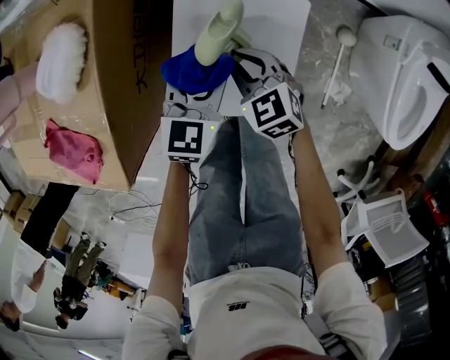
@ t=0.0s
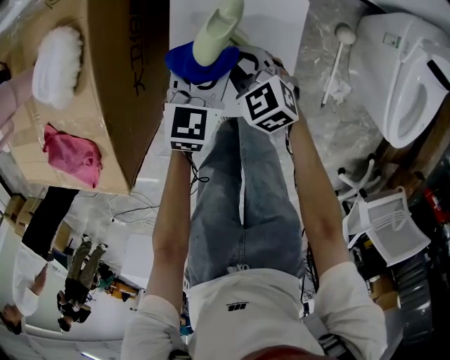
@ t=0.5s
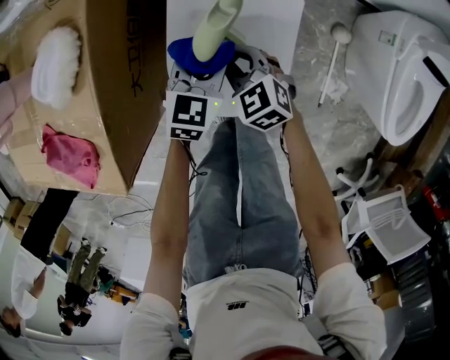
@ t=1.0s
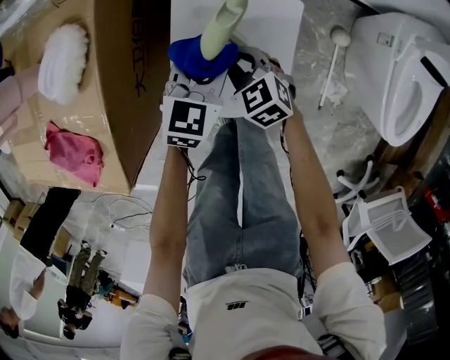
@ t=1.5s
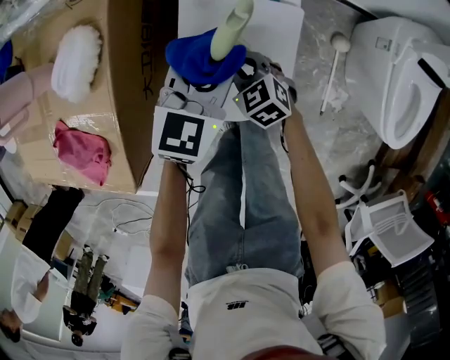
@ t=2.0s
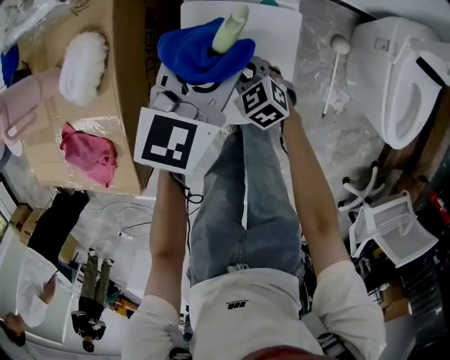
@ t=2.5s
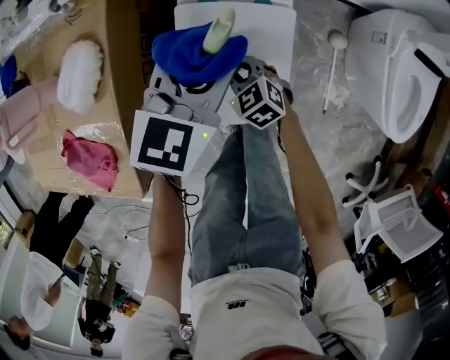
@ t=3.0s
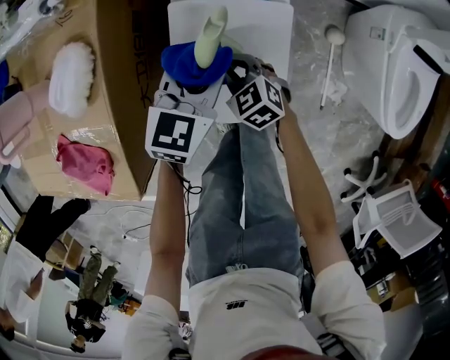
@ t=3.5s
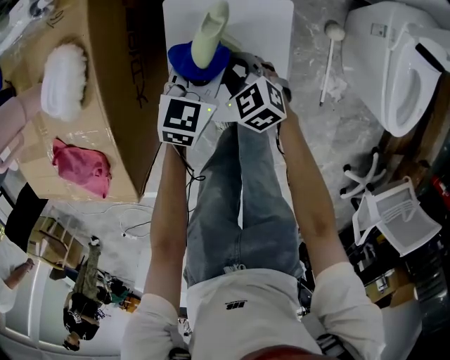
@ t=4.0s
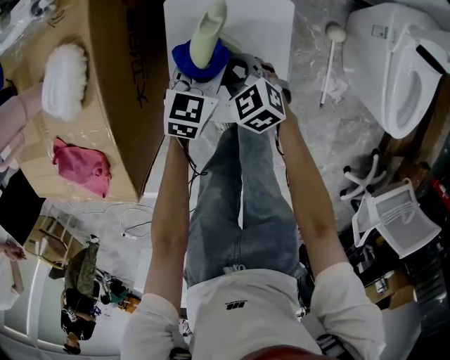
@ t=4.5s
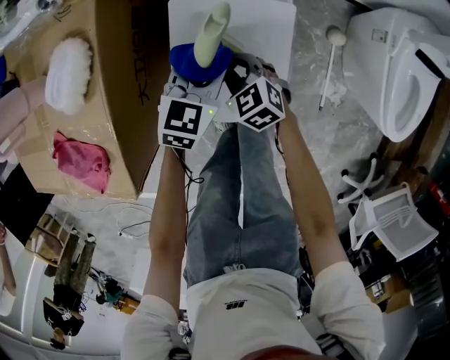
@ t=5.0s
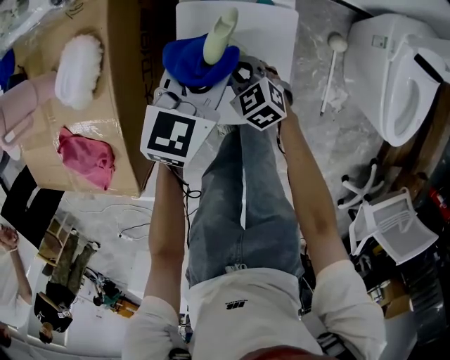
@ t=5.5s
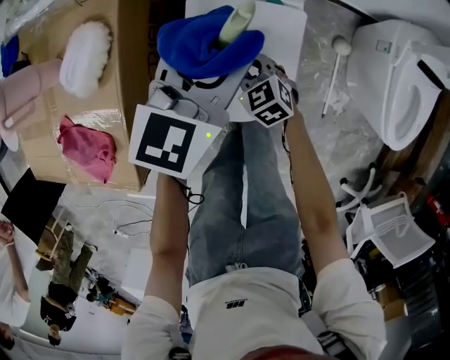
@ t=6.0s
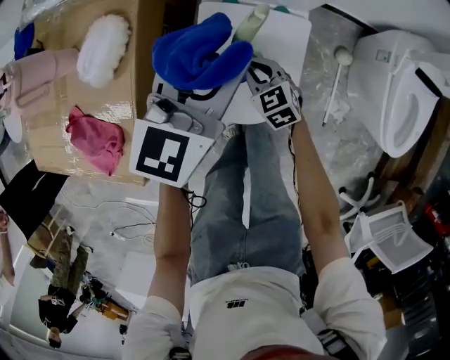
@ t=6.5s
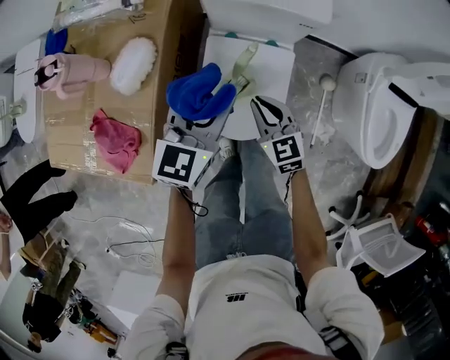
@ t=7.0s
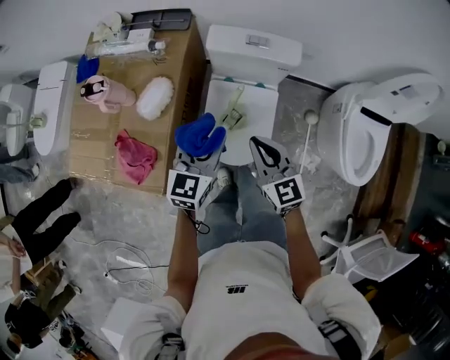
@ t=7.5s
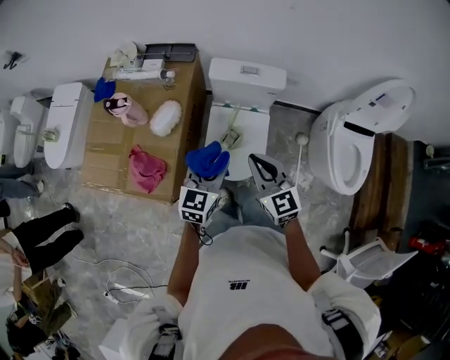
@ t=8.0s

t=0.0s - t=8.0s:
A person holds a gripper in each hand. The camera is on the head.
t=0.0s - t=2.0s: The left gripper travels upward by approximately 10 cm.
t=2.0s - t=4.0s: The left gripper goes about 10 cm downward.
t=4.0s - t=6.0s: The left gripper heads upward, covering roughly 20 cm.
t=6.0s - t=8.0s: The left gripper heads upward and backward, covering about 30 cm; the right gripper moves upward, some 50 cm, and tilts its fingers roughly 30 degrees upward.

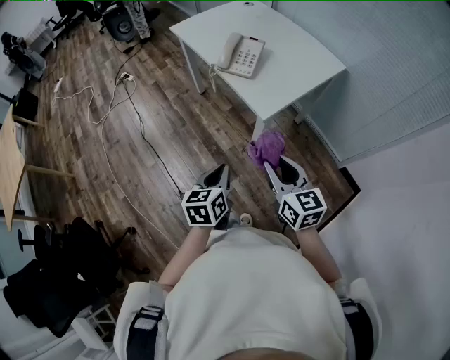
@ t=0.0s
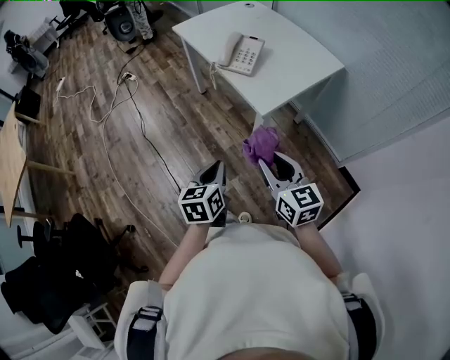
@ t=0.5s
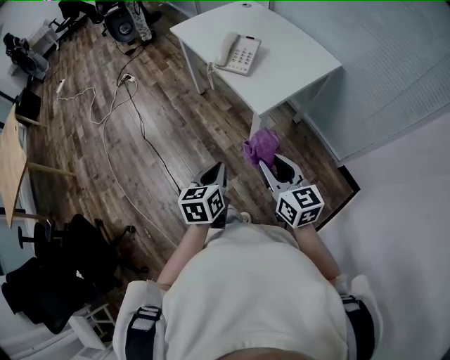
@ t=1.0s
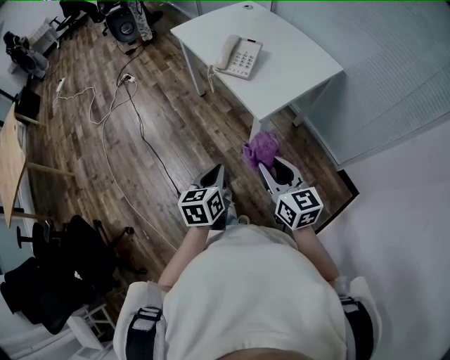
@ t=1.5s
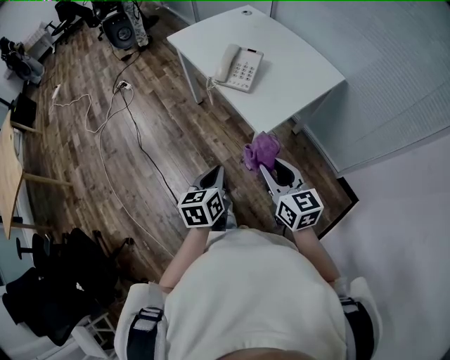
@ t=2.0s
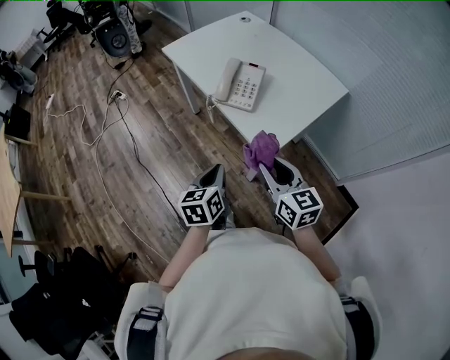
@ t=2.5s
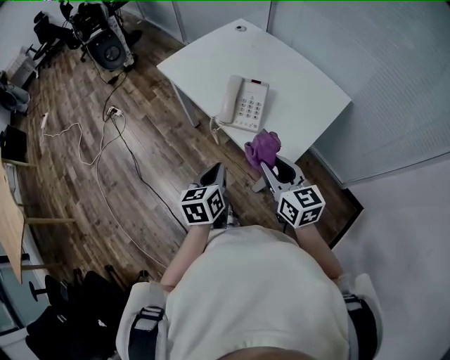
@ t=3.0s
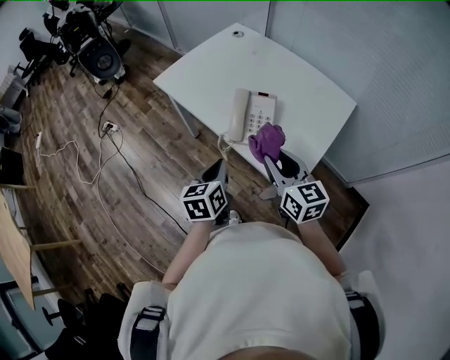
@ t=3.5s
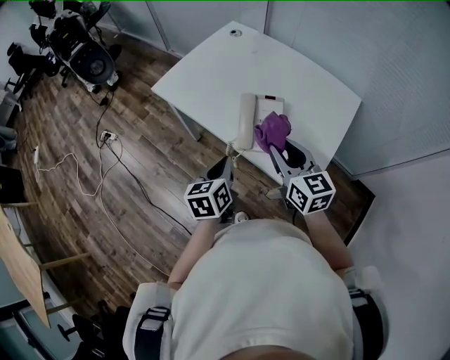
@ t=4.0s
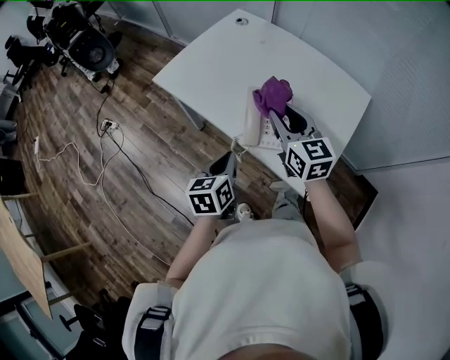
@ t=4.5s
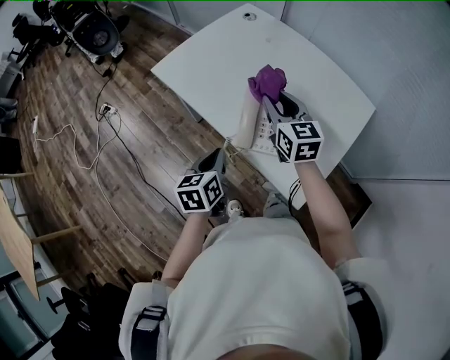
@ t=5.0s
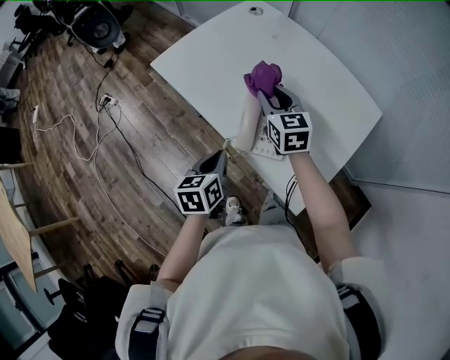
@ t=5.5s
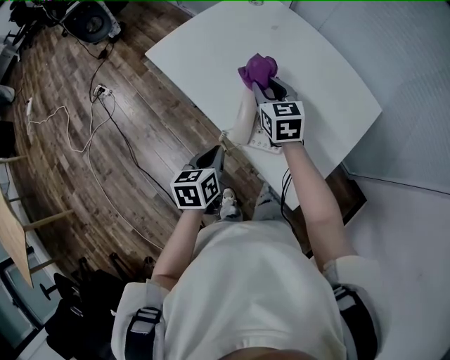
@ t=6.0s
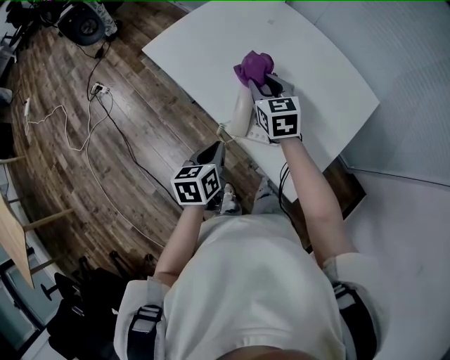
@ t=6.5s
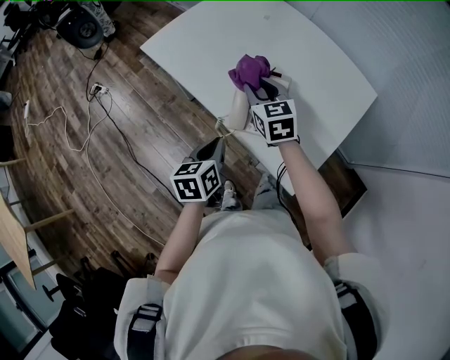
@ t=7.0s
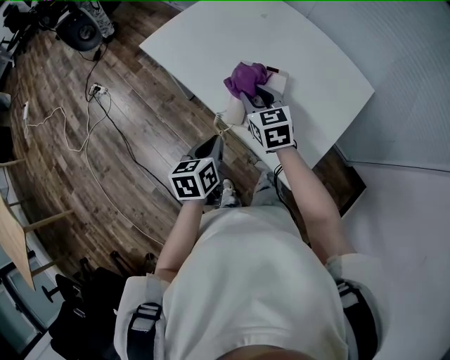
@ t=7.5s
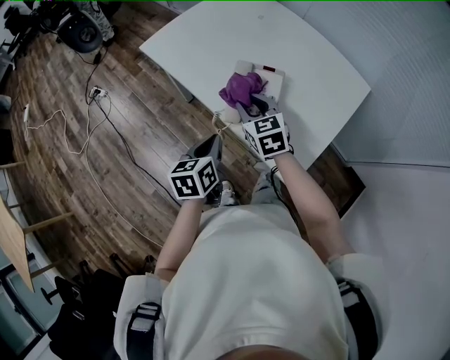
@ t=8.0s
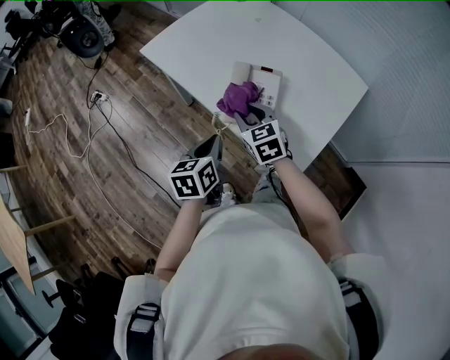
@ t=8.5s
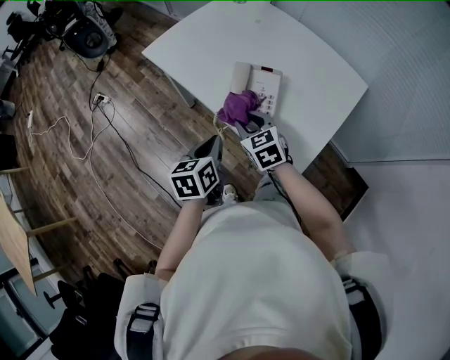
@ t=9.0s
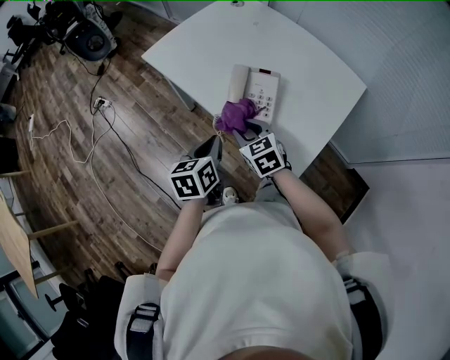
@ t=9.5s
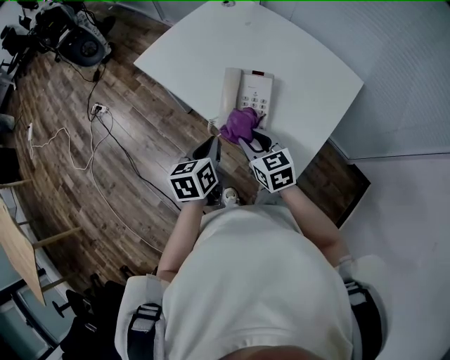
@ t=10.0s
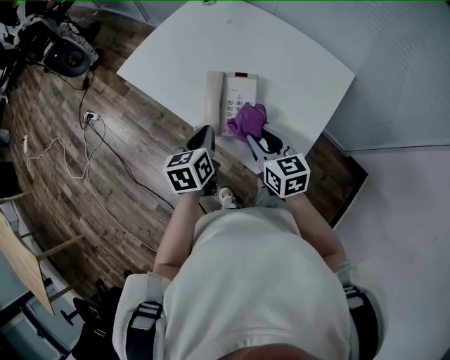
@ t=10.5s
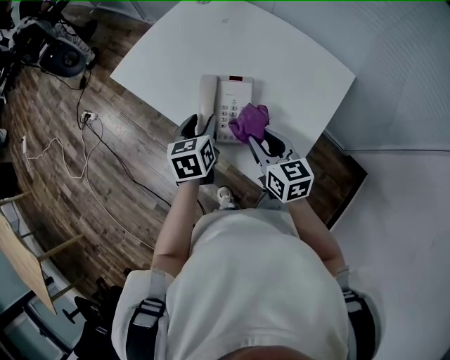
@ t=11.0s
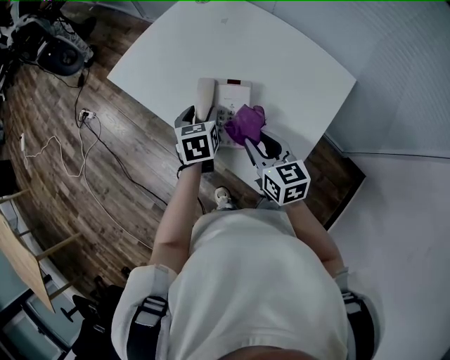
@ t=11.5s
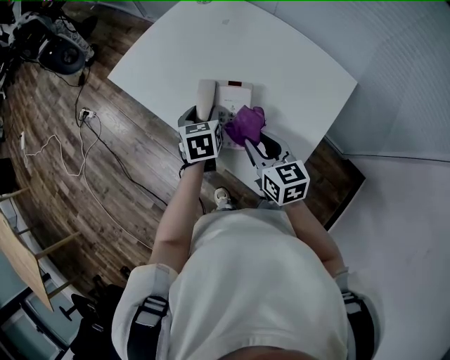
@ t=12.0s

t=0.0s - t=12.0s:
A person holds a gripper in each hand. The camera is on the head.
t=0.0s - t=2.0s: The left gripper goes some 5 cm forward.
t=2.0s - t=4.0s: Both grippers travel together forward, some 35 cm.
t=4.0s - t=6.0s: The left gripper is displaced downward by some 5 cm, while the right gripper is displaced forward by roughly 20 cm.
t=6.0s - t=8.0s: The right gripper is displaced backward by about 10 cm.
t=8.0s - t=10.0s: The right gripper goes some 10 cm backward.
t=10.0s - t=12.0s: The right gripper travels to the right by roughly 10 cm. Meanwhile the left gripper shifts approximately 15 cm forward and to the right, changes its angle by about 20 degrees, and opens its fingers.

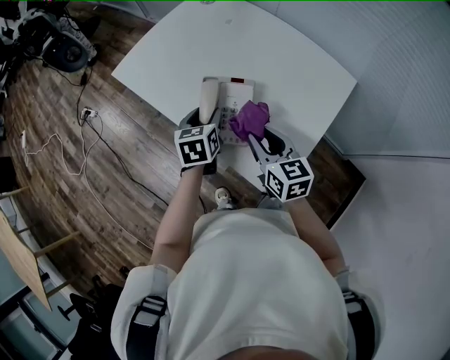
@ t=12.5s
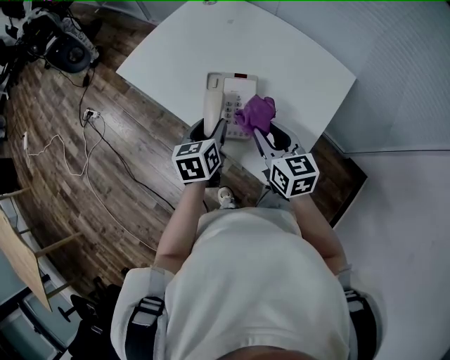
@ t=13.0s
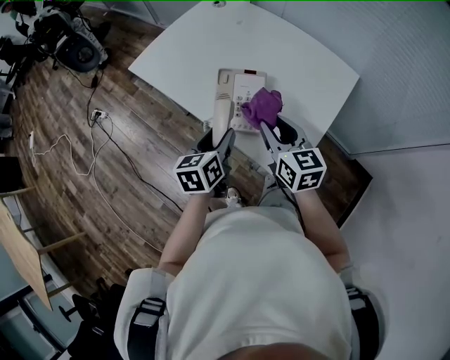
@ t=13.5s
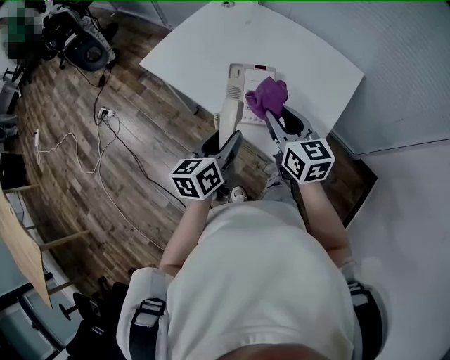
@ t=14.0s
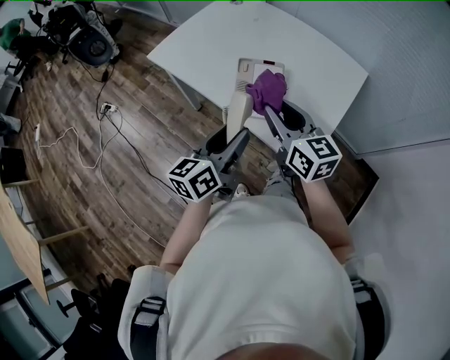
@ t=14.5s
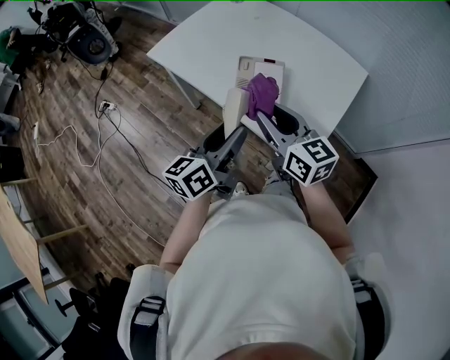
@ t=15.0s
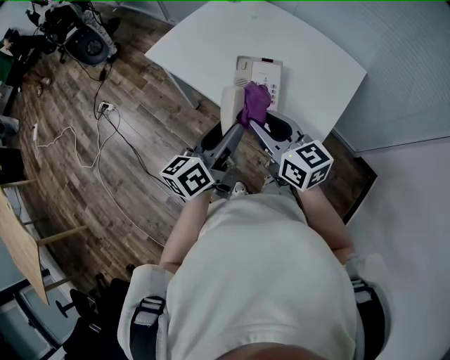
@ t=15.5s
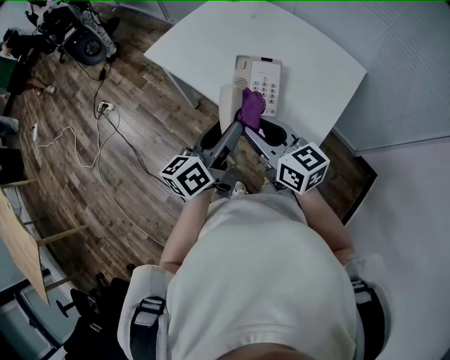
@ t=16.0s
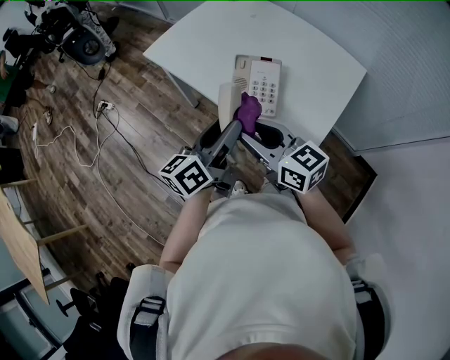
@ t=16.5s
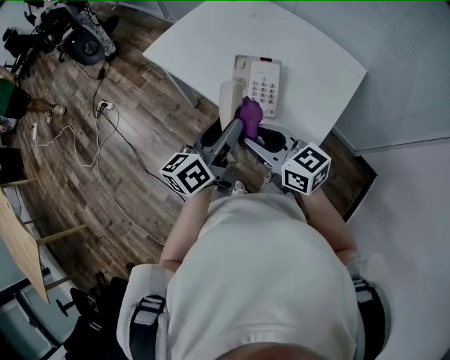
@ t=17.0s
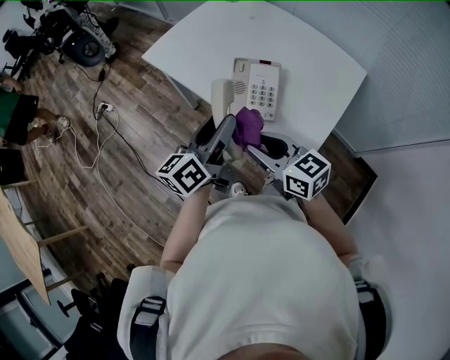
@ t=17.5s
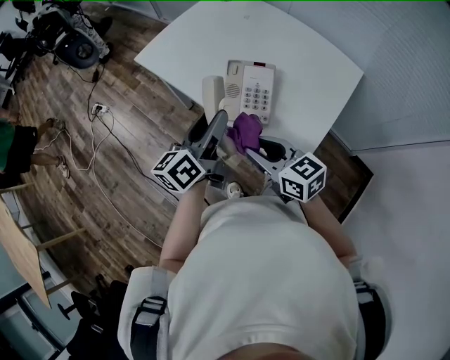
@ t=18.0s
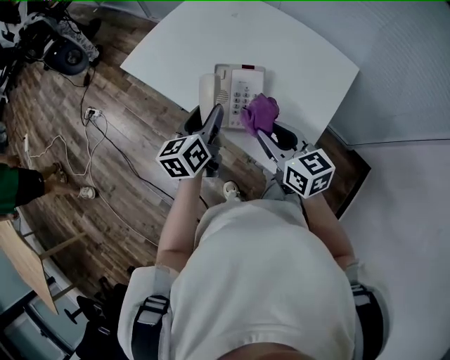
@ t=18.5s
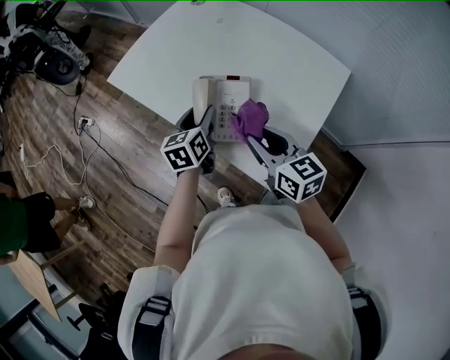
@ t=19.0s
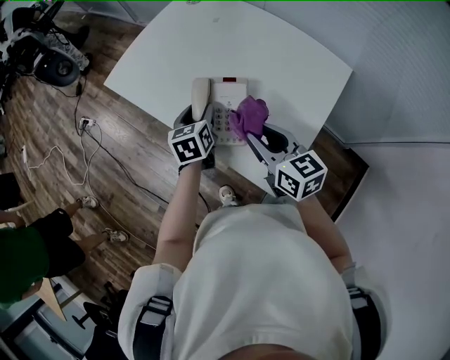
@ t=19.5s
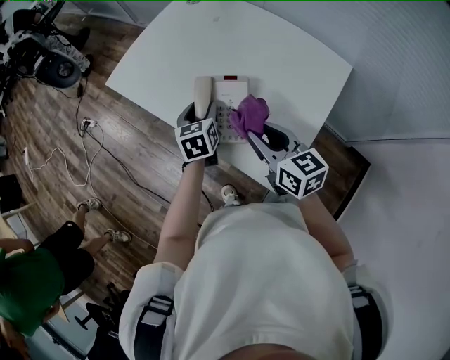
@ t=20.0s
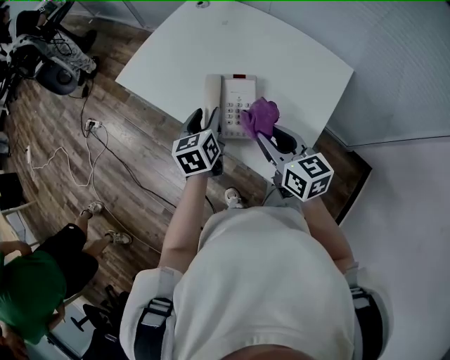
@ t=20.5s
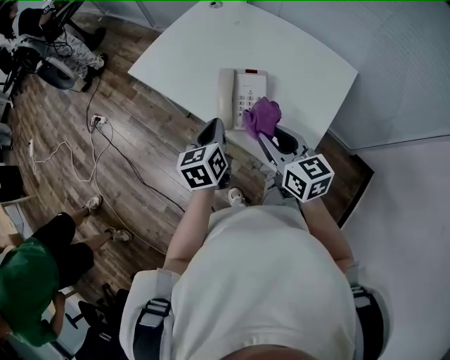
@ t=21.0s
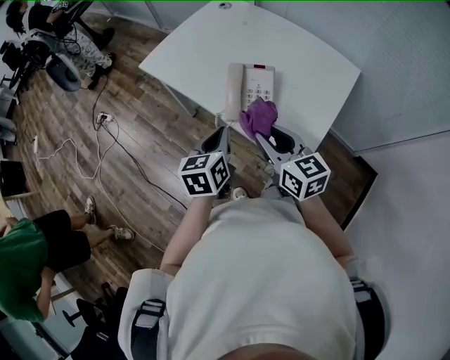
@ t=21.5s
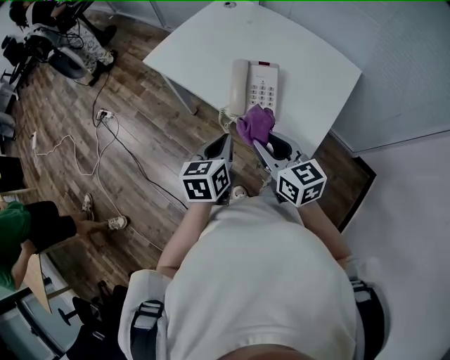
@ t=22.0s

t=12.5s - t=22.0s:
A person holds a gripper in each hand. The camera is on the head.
t=12.5s - t=14.5s: The right gripper heads upward, to the left and backward, covering approximately 15 cm. The left gripper heads backward and upward, covering about 20 cm, and angles its fingers upward, by approximately 30 degrees.
t=14.5s - t=16.5s: The right gripper travels to the left and backward by approximately 10 cm, and rotates roughly 20 degrees.
t=16.5s - t=18.0s: The right gripper goes roughly 5 cm downward, while the left gripper travels forward by some 5 cm.
t=18.0s - t=20.0s: The right gripper is displaced to the right and forward by approximately 15 cm. Meanwhile the left gripper goes about 20 cm downward, forward and to the right, and angles its fingers downward, by about 30 degrees.
t=20.0s - t=22.0s: The left gripper travels backward by about 20 cm, and closes its fingers. Meanwhile the right gripper heads backward and to the left, covering roughly 15 cm.
